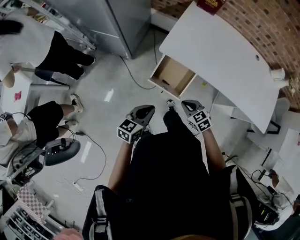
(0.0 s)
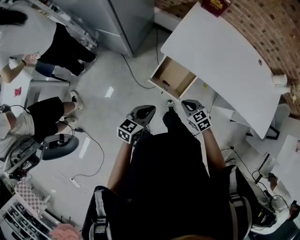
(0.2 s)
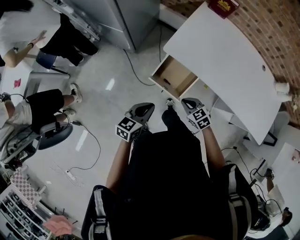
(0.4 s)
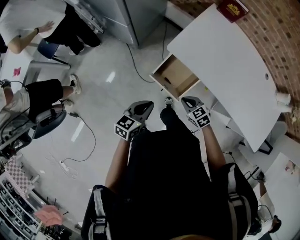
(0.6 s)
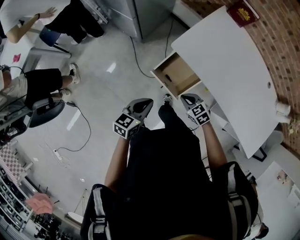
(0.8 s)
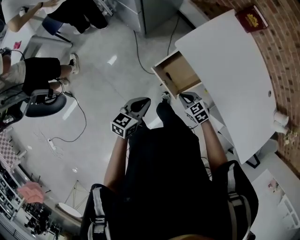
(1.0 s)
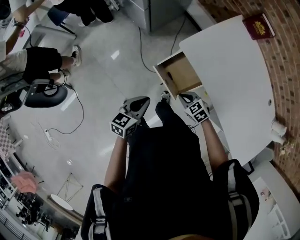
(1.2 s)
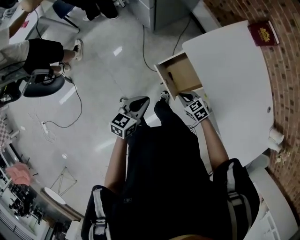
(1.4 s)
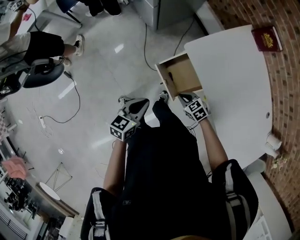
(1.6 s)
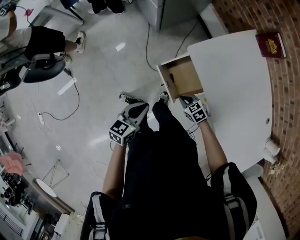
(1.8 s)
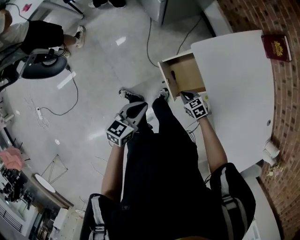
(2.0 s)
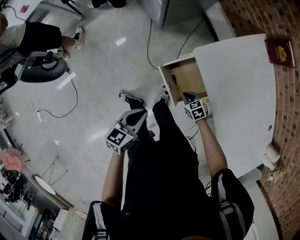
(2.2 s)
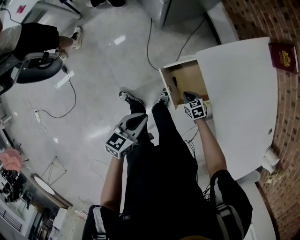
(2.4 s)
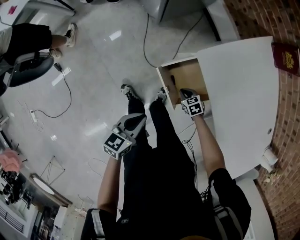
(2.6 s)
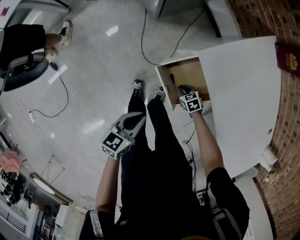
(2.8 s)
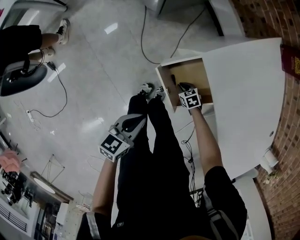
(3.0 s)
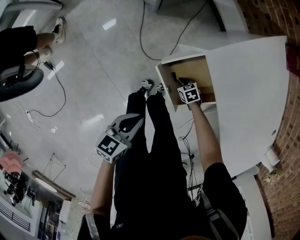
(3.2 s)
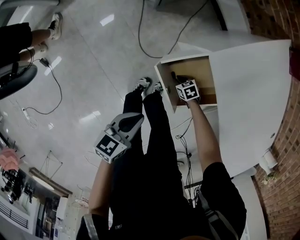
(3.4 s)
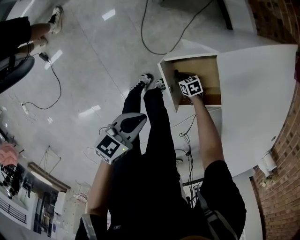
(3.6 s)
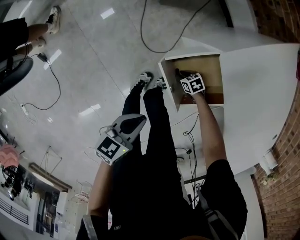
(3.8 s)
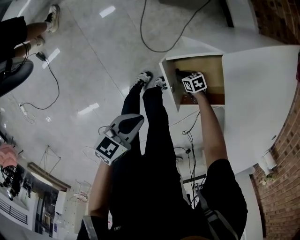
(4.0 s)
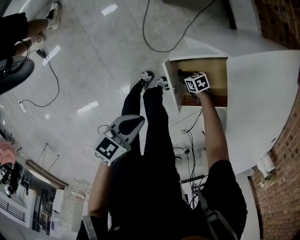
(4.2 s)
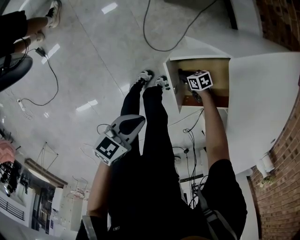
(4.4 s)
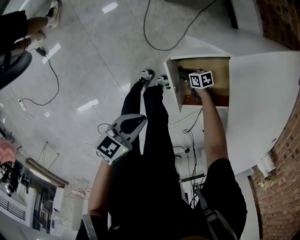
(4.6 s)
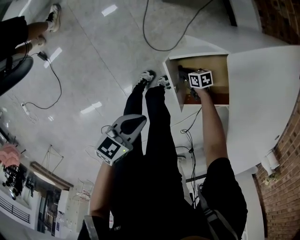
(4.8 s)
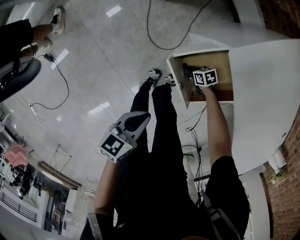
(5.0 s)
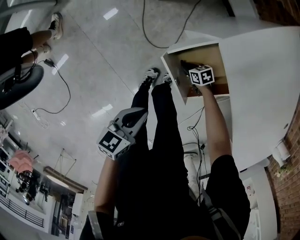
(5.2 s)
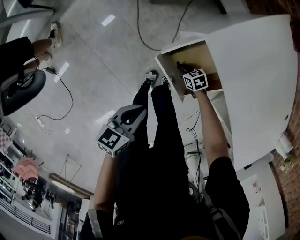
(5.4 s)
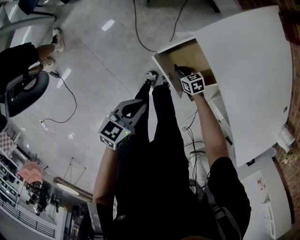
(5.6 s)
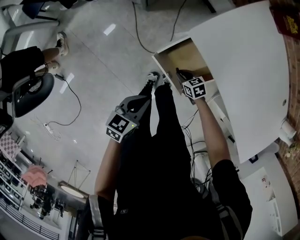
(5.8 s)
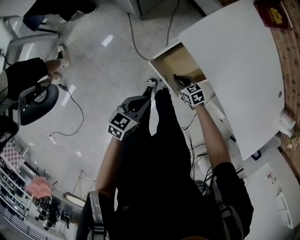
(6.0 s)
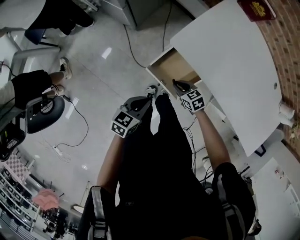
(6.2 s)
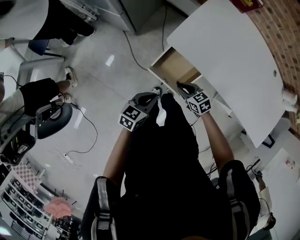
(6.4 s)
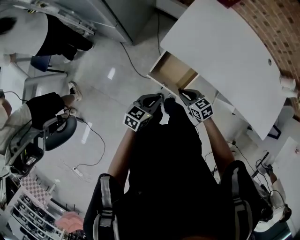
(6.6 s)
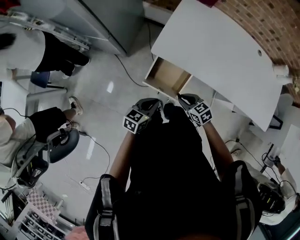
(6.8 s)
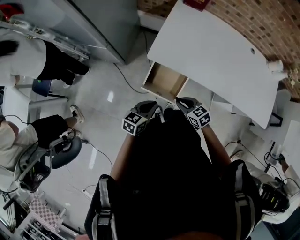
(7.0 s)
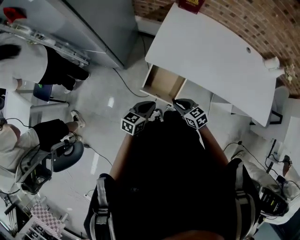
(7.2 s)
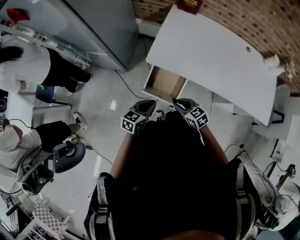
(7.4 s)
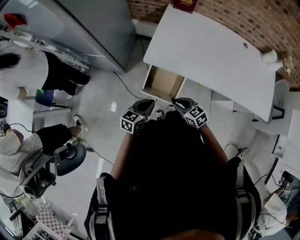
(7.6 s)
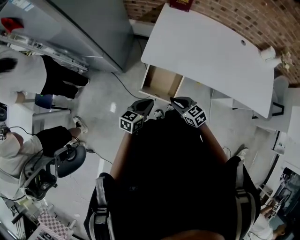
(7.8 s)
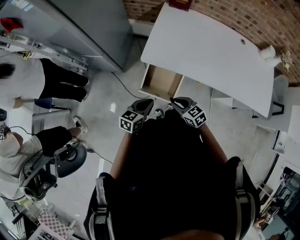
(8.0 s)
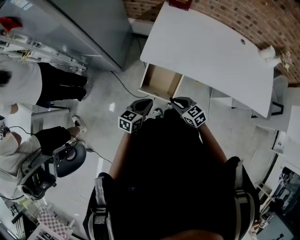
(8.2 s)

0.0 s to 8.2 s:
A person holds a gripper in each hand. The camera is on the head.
0.0 to 1.6 s: The right gripper is displaced downward by some 10 cm, and swivels roughly 40 degrees, while the left gripper changes its angle by approximately 30 degrees.
1.6 to 3.2 s: The left gripper heads downward, covering approximately 10 cm. The right gripper travels downward by roughly 25 cm, and turns by approximately 20 degrees.
3.2 to 5.0 s: The right gripper moves downward, roughly 5 cm, and turns by some 20 degrees.
5.0 to 6.6 s: The left gripper travels upward by approximately 10 cm, and changes its angle by about 40 degrees. Meanwhile the right gripper travels upward by approximately 35 cm, and changes its angle by some 40 degrees.
6.6 to 8.2 s: The right gripper heads upward, covering some 5 cm.

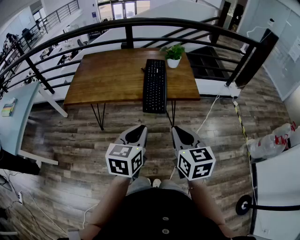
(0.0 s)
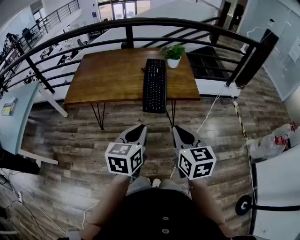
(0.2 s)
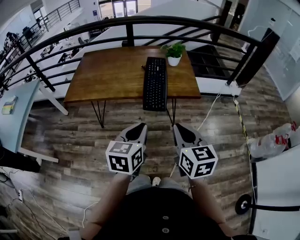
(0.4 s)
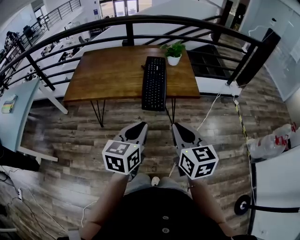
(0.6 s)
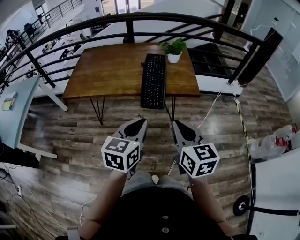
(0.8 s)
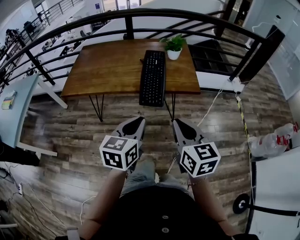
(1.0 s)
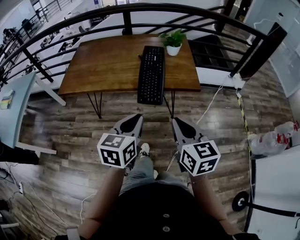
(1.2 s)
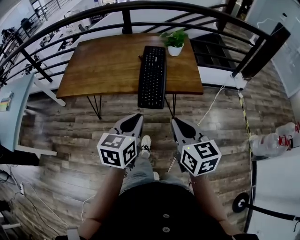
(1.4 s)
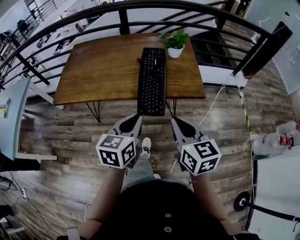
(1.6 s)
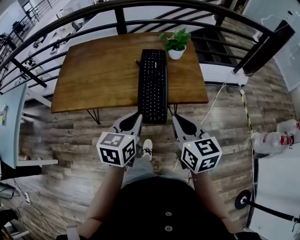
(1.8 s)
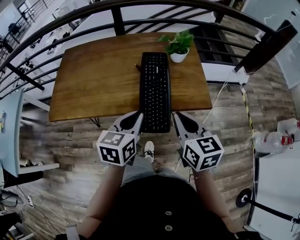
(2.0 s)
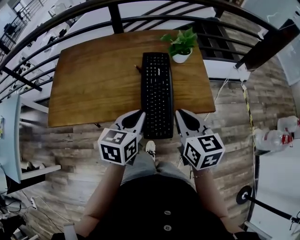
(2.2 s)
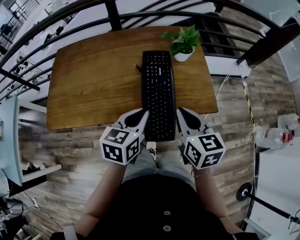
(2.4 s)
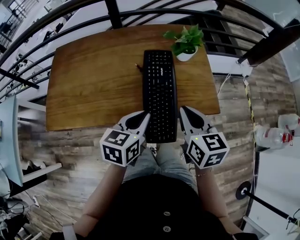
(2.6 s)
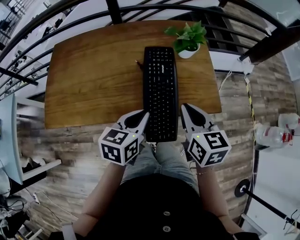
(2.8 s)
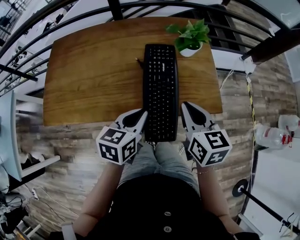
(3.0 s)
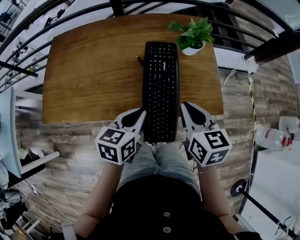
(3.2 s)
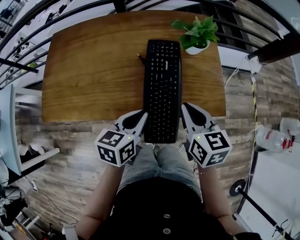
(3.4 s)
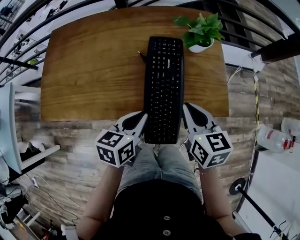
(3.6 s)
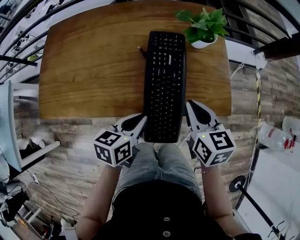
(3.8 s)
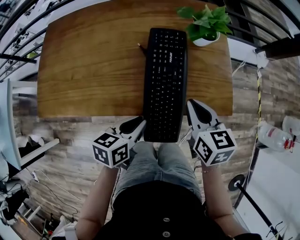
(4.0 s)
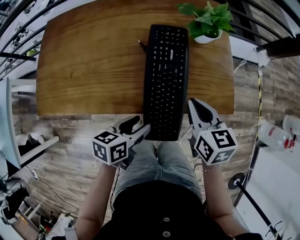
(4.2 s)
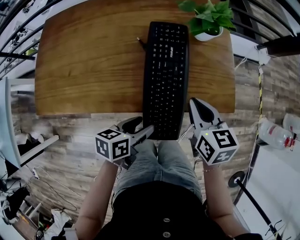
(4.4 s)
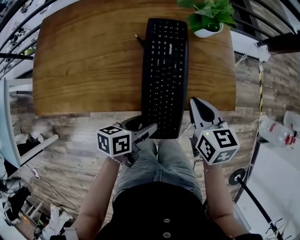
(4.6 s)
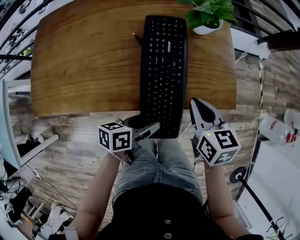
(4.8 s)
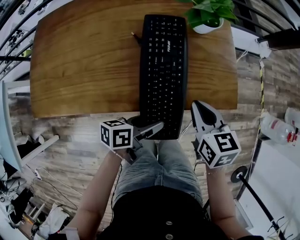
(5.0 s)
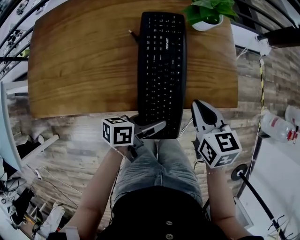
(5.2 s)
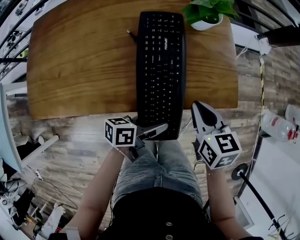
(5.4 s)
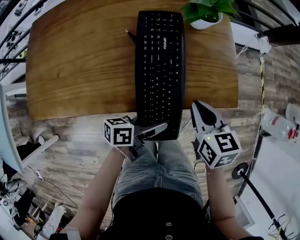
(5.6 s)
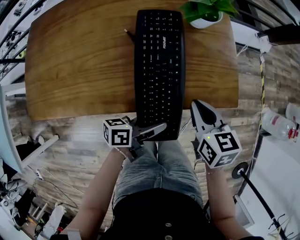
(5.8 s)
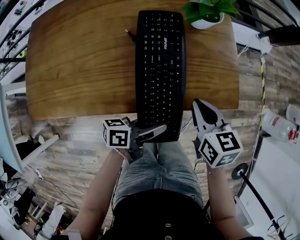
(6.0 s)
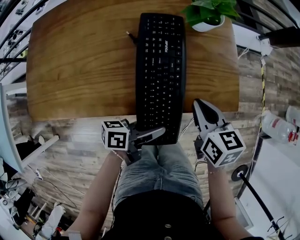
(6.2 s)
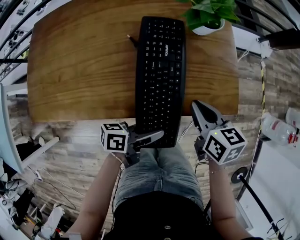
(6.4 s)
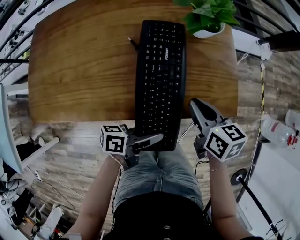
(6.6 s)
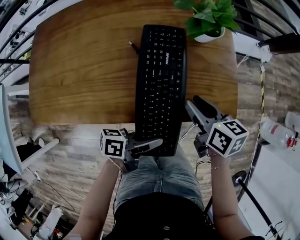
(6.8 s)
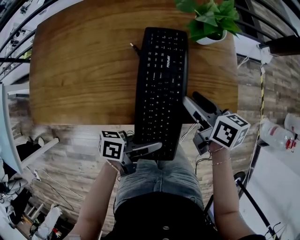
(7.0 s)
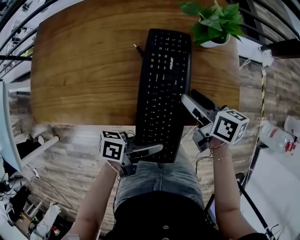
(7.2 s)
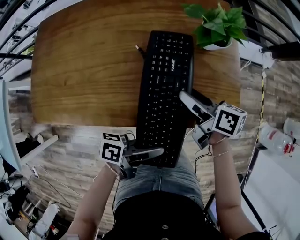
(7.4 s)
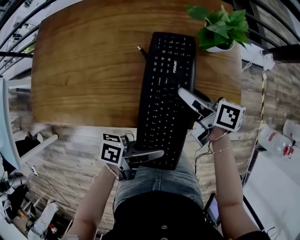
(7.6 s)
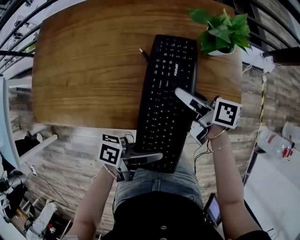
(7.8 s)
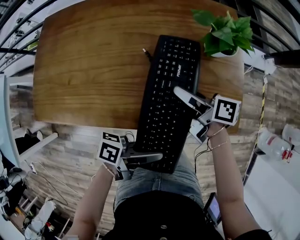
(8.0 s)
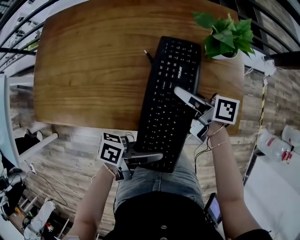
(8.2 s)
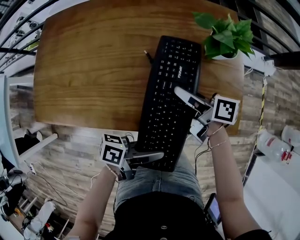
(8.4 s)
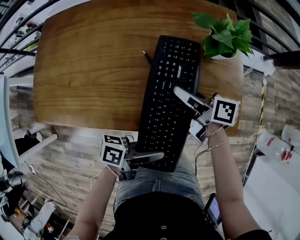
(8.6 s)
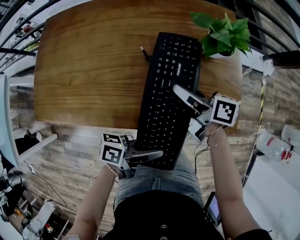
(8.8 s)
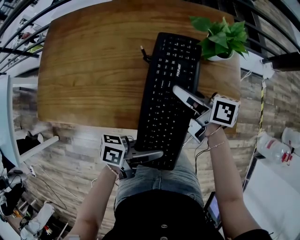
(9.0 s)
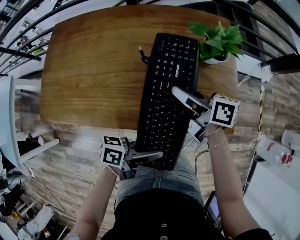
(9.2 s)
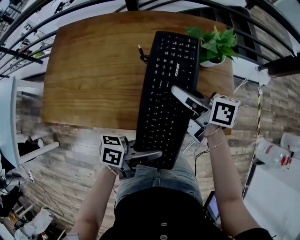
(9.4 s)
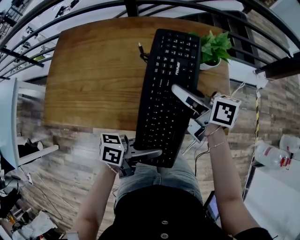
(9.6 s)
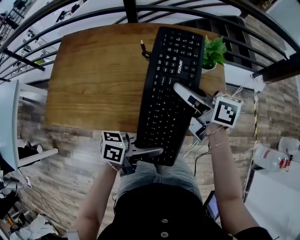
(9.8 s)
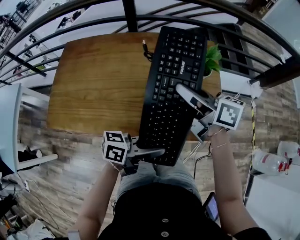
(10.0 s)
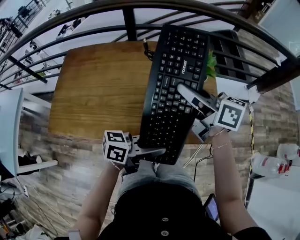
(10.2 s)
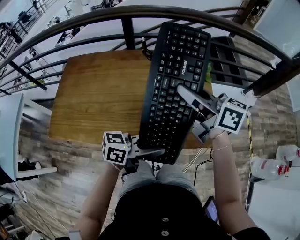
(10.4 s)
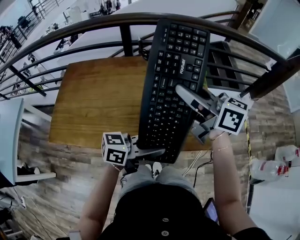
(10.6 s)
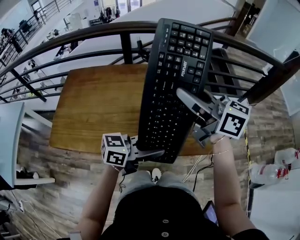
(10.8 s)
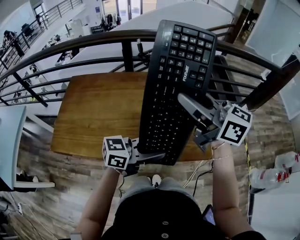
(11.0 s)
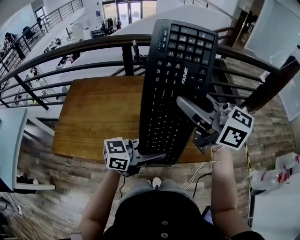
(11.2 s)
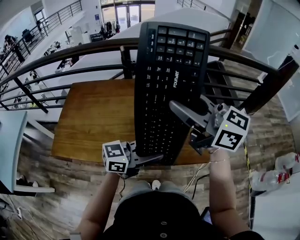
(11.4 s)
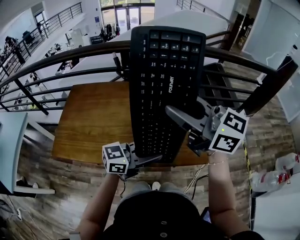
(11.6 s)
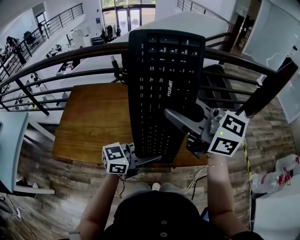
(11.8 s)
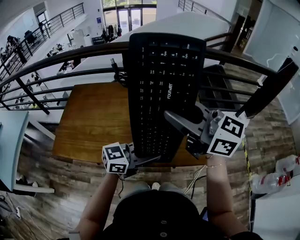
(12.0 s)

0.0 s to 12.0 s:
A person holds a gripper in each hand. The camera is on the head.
0.0 to 1.6 s: Both grippers travel together forward, approximately 10 cm.
1.6 to 3.0 s: The grippers both shift forward by roughly 20 cm.
3.0 to 4.4 s: The left gripper moves downward and backward, approximately 10 cm, changes its angle by some 30 degrees, and opens up; the right gripper heads downward, covering approximately 10 cm.
4.4 to 6.0 s: The left gripper travels to the right by approximately 5 cm, turns by roughly 30 degrees, and closes up.
6.0 to 7.6 s: The right gripper shifts by roughly 10 cm, changes its angle by about 40 degrees, and opens its fingers. The left gripper heads upward, covering about 5 cm.
7.6 to 9.0 s: The right gripper closes its fingers.
9.0 to 10.4 s: The right gripper moves upward, about 25 cm, and turns by approximately 30 degrees. The left gripper is displaced upward by some 10 cm, and rotates some 30 degrees.
10.4 to 12.0 s: The left gripper travels upward by roughly 5 cm, and rotates roughly 30 degrees, while the right gripper is displaced upward by about 10 cm, and changes its angle by about 30 degrees.

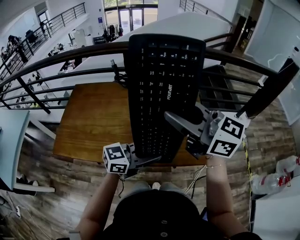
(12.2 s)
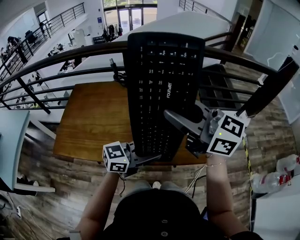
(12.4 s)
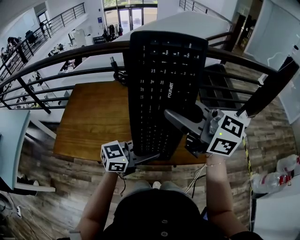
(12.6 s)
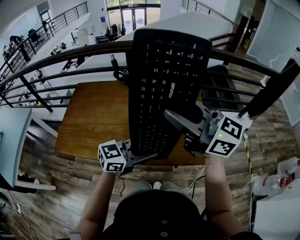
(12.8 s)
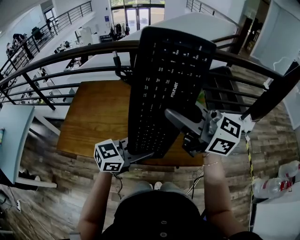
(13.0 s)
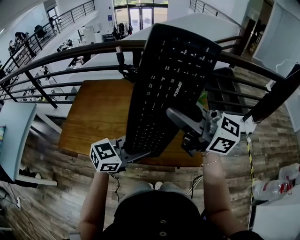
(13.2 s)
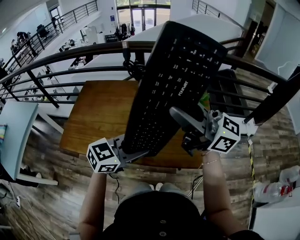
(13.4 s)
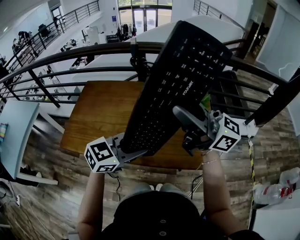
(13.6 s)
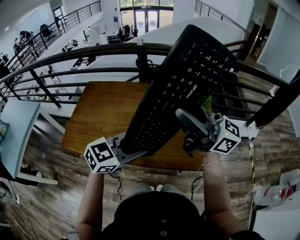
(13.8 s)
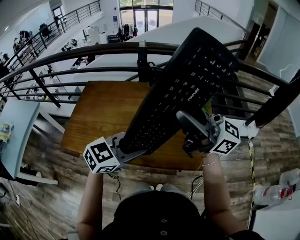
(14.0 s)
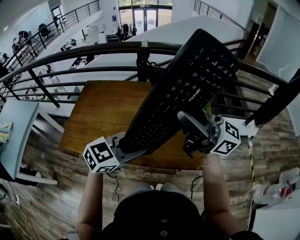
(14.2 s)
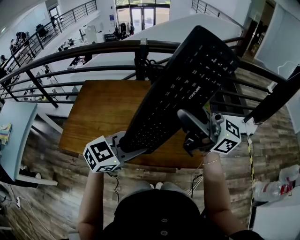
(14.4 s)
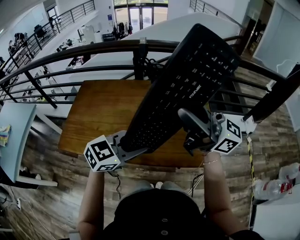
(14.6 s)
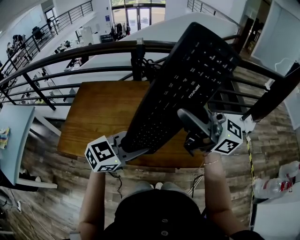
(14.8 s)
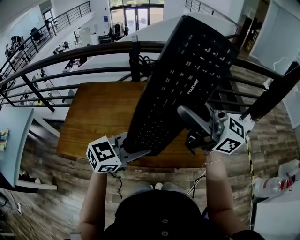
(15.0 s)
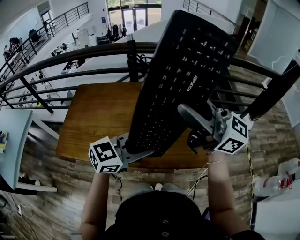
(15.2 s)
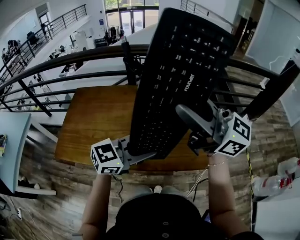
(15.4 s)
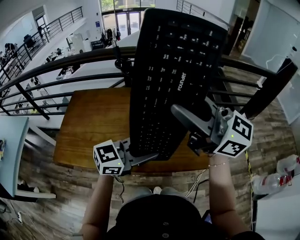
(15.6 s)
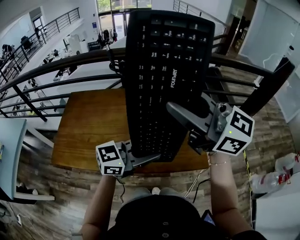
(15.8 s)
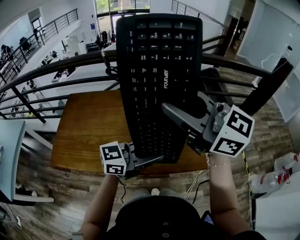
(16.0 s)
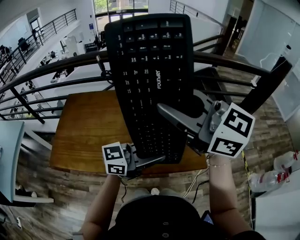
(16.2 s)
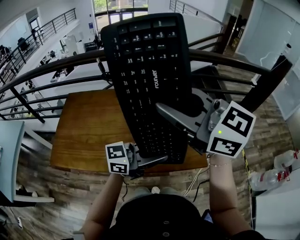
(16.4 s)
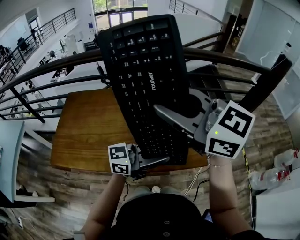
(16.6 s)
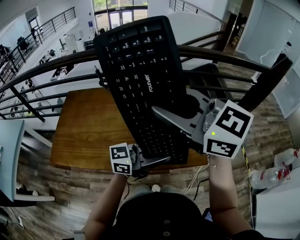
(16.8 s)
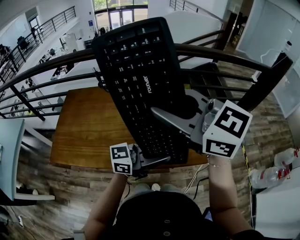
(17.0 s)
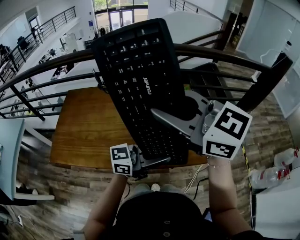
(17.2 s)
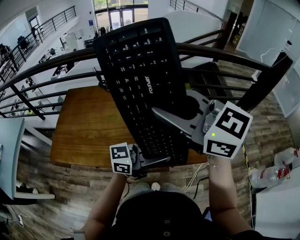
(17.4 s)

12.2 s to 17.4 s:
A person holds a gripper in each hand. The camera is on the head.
12.2 to 14.0 s: The right gripper rotates some 30 degrees. Meanwhile the left gripper shifts by roughly 10 cm, and turns by approximately 30 degrees.
14.0 to 15.6 s: The left gripper moves roughly 5 cm, and swivels some 20 degrees, while the right gripper swivels about 20 degrees.
15.6 to 17.4 s: The left gripper changes place by roughly 5 cm, and turns by approximately 20 degrees. Meanwhile the right gripper turns by some 20 degrees.
